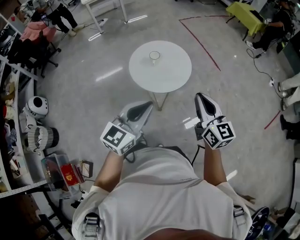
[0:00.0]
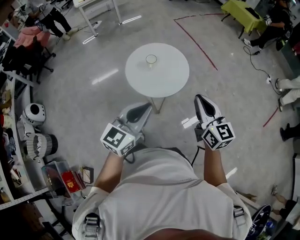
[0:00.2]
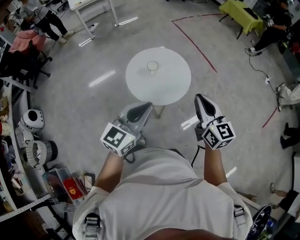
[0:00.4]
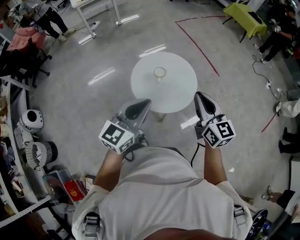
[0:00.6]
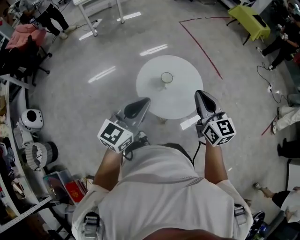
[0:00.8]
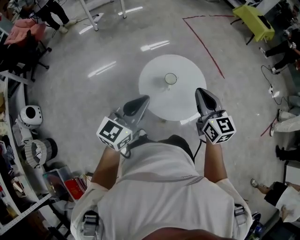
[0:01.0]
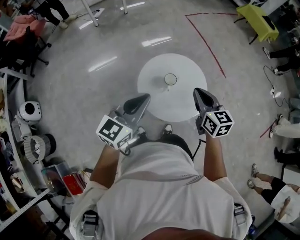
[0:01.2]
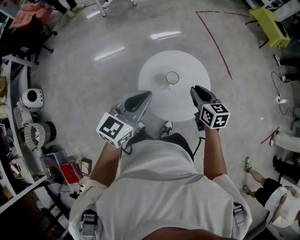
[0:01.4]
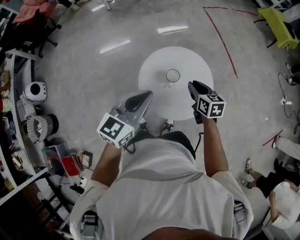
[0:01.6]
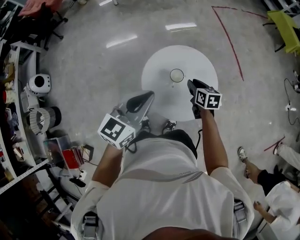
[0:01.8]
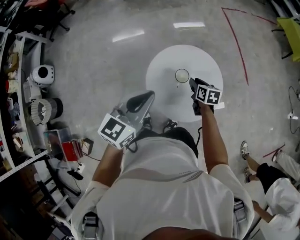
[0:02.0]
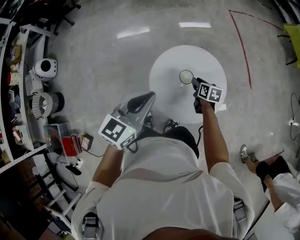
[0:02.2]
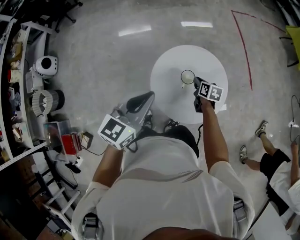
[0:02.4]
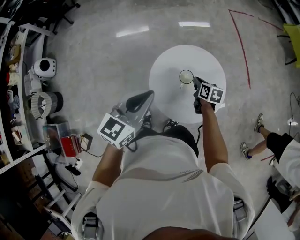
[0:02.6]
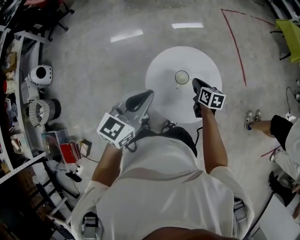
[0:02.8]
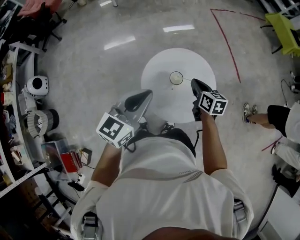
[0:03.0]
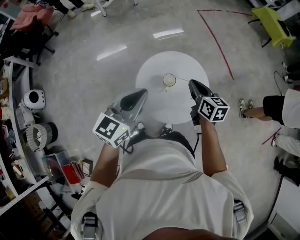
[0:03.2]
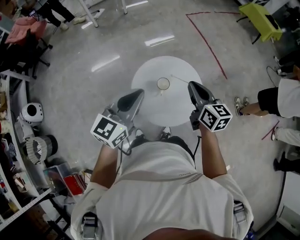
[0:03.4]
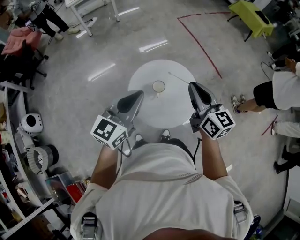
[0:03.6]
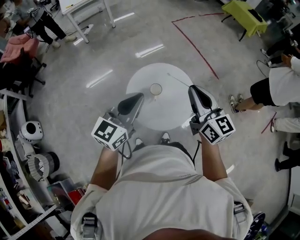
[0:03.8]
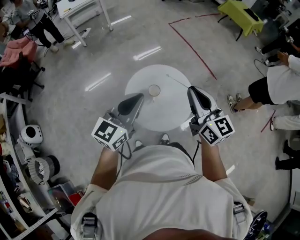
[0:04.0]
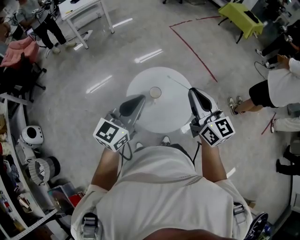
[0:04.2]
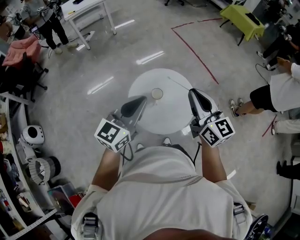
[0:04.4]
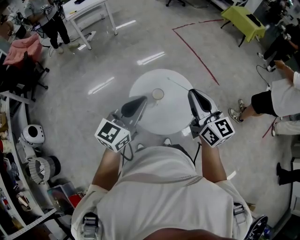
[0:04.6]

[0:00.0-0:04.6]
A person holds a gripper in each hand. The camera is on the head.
0:00.0 to 0:01.6: The two grippers travel together, forward, roughly 40 cm. The right gripper goes some 20 cm downward, and points its fingers roughly 30 degrees further downward.
0:01.6 to 0:03.0: The right gripper reaches roughly 15 cm downward, then returns.
0:03.0 to 0:04.6: The left gripper moves upward and to the right, some 10 cm; the right gripper travels upward and backward by about 30 cm, and points its fingers approximately 30 degrees further upward.

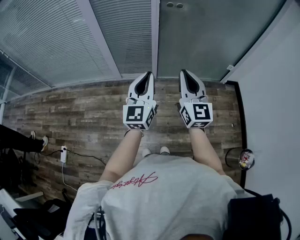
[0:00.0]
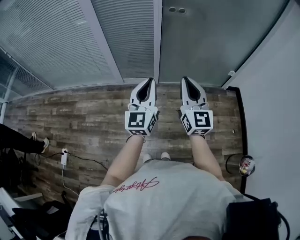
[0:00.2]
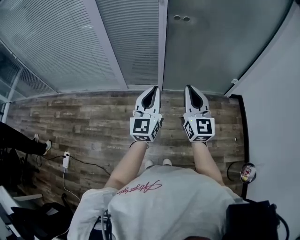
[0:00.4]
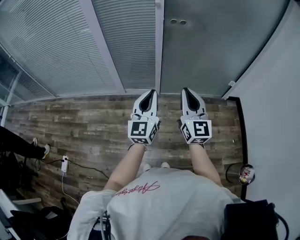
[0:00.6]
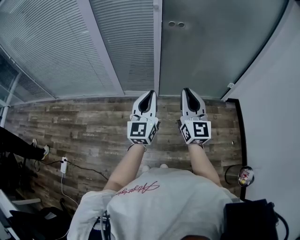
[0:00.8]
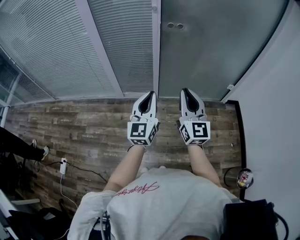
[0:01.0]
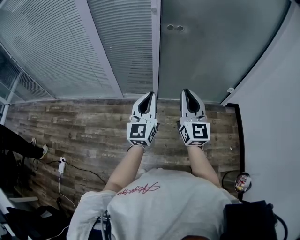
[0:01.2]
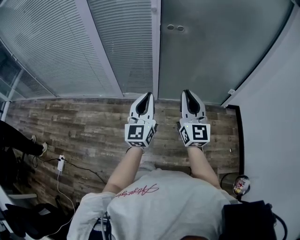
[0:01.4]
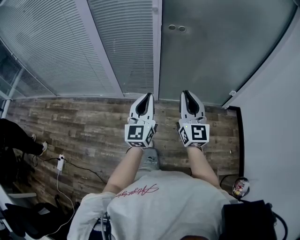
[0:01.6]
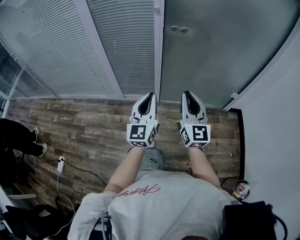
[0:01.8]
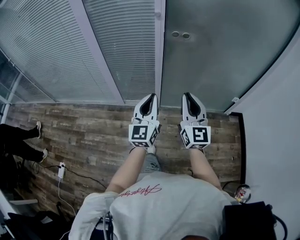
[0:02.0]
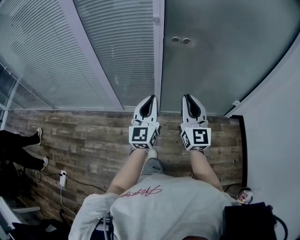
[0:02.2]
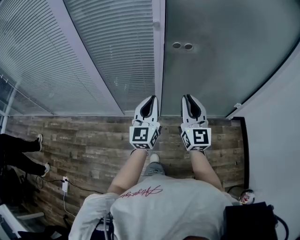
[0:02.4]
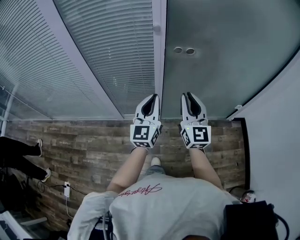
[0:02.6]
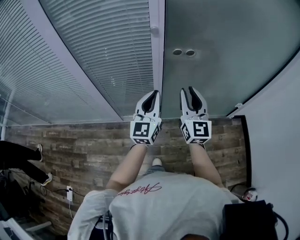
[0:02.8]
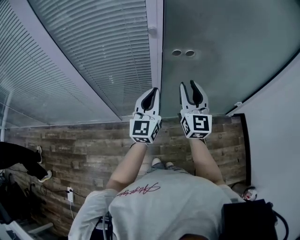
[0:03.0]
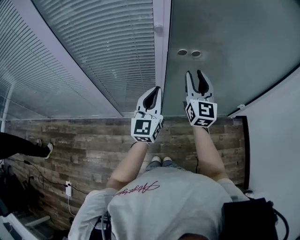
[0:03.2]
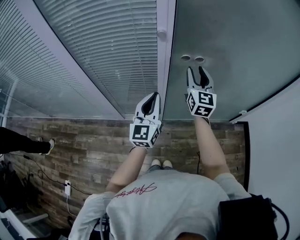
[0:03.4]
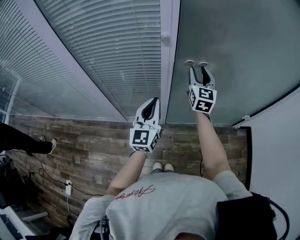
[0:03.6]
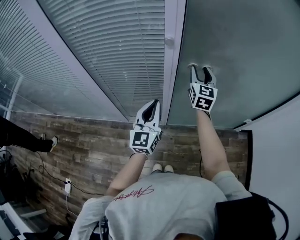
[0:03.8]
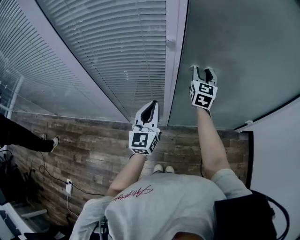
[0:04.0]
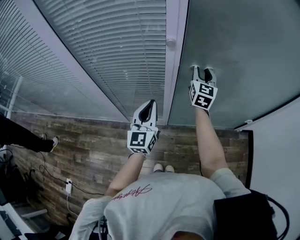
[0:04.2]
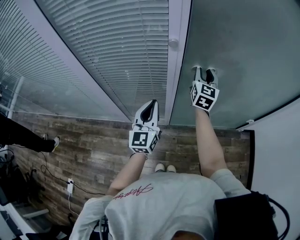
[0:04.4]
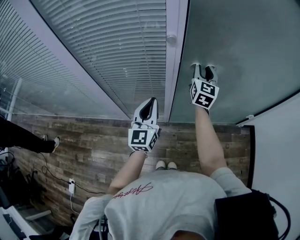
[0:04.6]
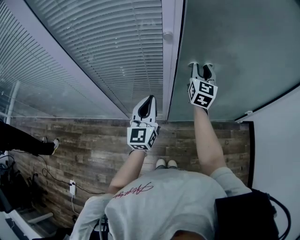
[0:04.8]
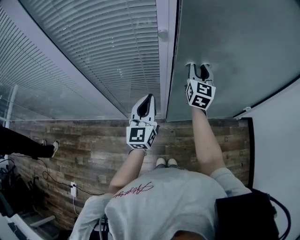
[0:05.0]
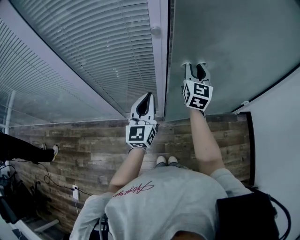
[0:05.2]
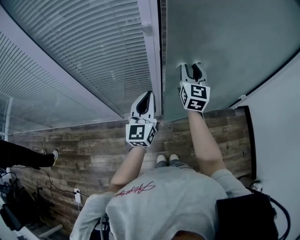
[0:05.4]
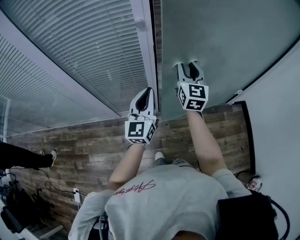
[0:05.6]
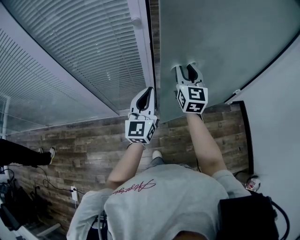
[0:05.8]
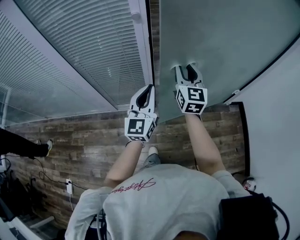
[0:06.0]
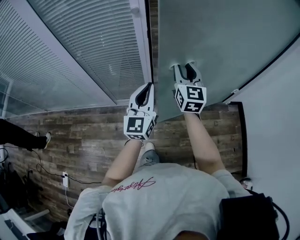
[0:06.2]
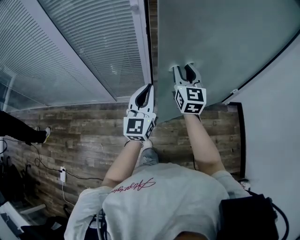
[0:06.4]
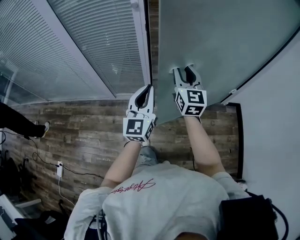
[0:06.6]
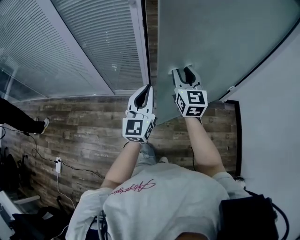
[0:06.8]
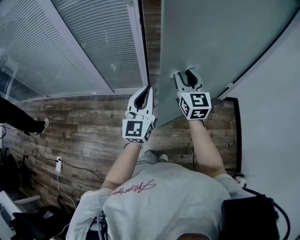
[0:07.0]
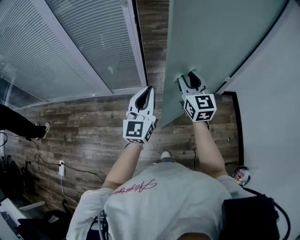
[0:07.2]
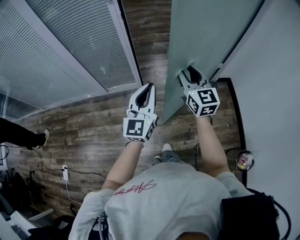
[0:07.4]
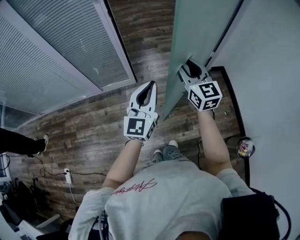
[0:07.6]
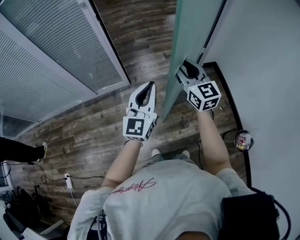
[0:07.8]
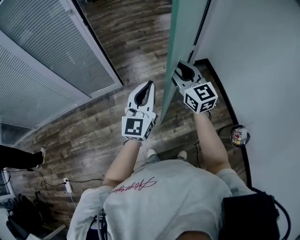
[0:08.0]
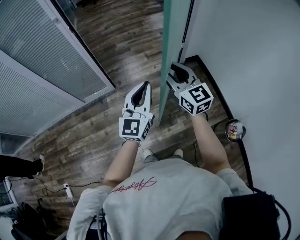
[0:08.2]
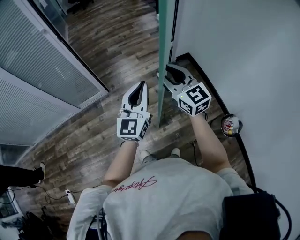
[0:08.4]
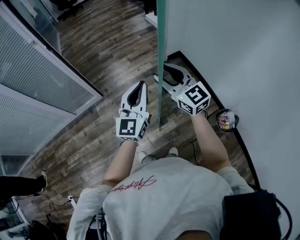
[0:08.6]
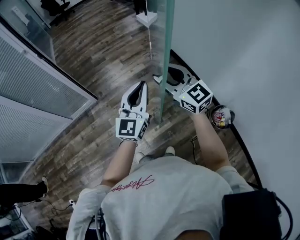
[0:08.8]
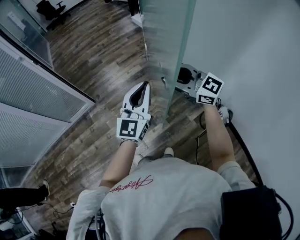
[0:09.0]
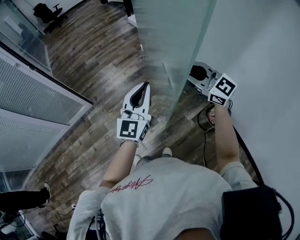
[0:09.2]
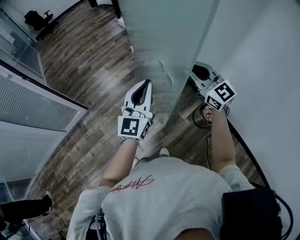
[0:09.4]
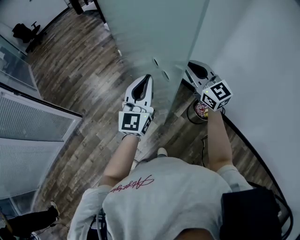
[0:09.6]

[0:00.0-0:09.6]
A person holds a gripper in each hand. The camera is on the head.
0:00.0 to 0:01.6: The left gripper is displaced forward by about 5 cm, while the right gripper heads forward and to the right, covering about 10 cm.
0:01.6 to 0:03.2: The grippers both shift forward by about 35 cm. The right gripper opens up.
0:03.2 to 0:04.8: The left gripper heads to the left, covering approximately 5 cm; the right gripper is displaced forward by about 15 cm.
0:04.8 to 0:06.4: The left gripper moves backward and to the right, roughly 20 cm; the right gripper heads backward, covering approximately 20 cm.
0:06.4 to 0:08.0: The two grippers go about 30 cm backward and to the right. The left gripper swivels about 20 degrees.
0:08.0 to 0:09.6: The left gripper changes place by about 35 cm, and changes its angle by roughly 30 degrees. Meanwhile the right gripper moves approximately 40 cm, swivels some 20 degrees, and closes up.

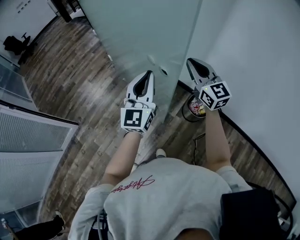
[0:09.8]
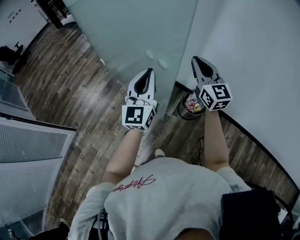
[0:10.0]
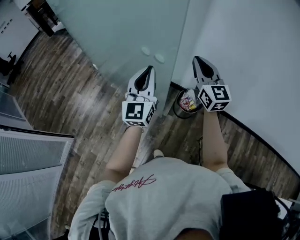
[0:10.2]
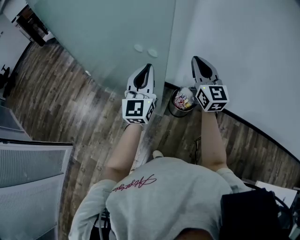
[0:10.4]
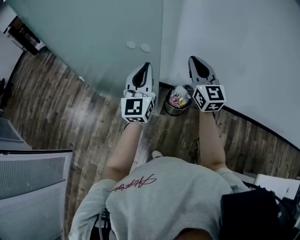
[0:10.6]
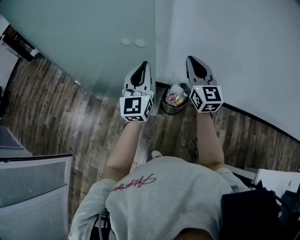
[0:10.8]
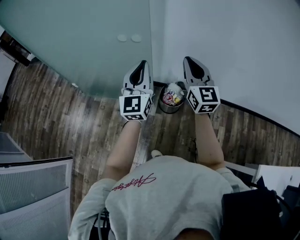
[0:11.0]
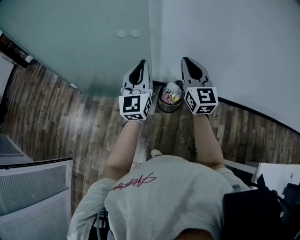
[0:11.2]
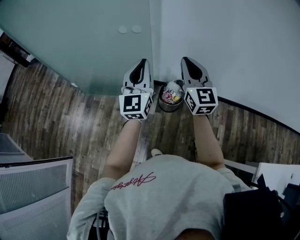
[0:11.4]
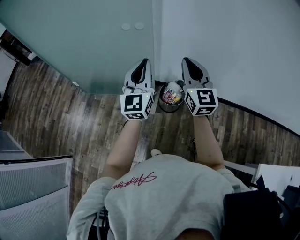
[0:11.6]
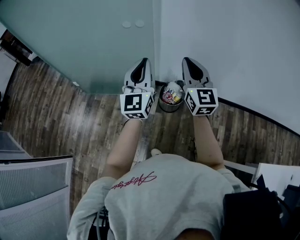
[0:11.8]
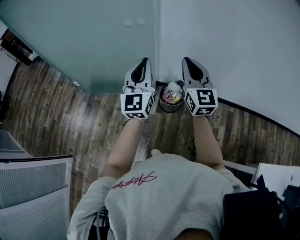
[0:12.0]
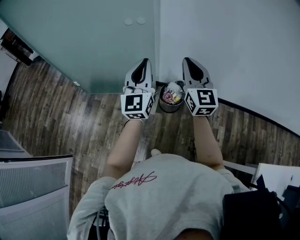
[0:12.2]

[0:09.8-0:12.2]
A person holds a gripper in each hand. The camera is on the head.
0:09.8 to 0:11.0: The right gripper moves approximately 20 cm, and rotates some 40 degrees. Meanwhile the left gripper changes place by some 20 cm.
0:11.0 to 0:12.2: The grippers move only a little.

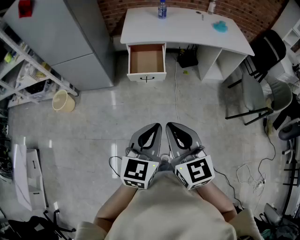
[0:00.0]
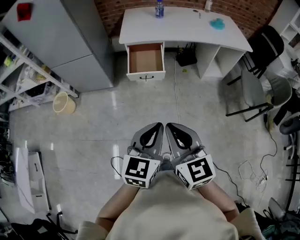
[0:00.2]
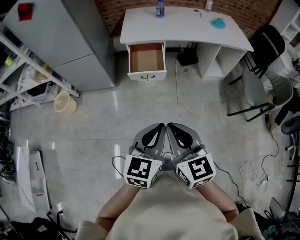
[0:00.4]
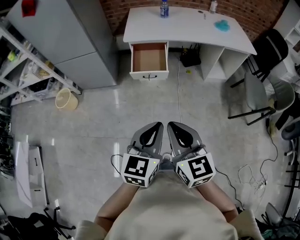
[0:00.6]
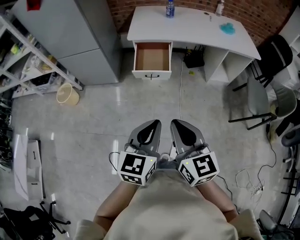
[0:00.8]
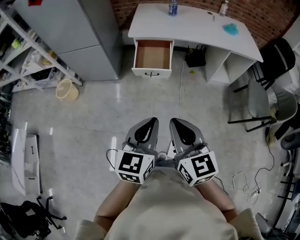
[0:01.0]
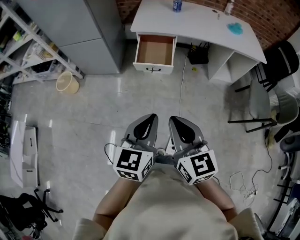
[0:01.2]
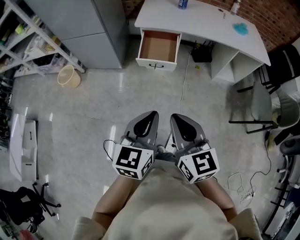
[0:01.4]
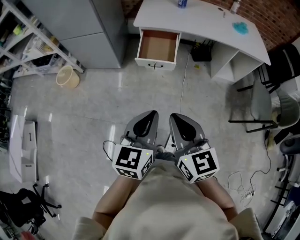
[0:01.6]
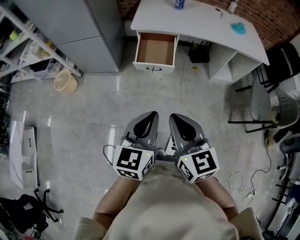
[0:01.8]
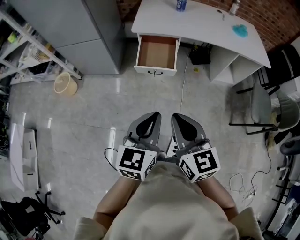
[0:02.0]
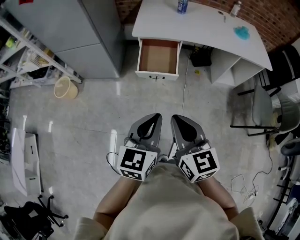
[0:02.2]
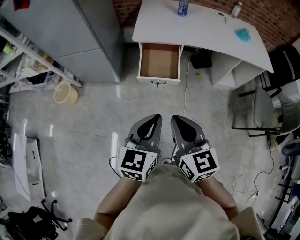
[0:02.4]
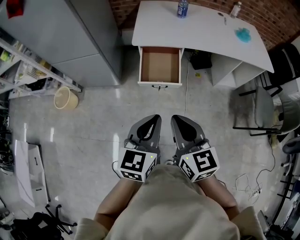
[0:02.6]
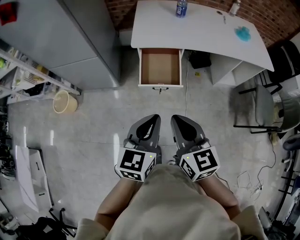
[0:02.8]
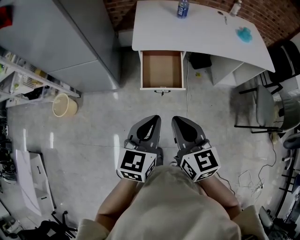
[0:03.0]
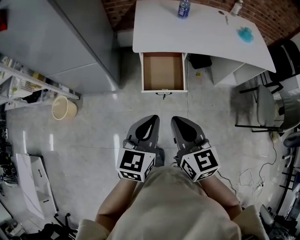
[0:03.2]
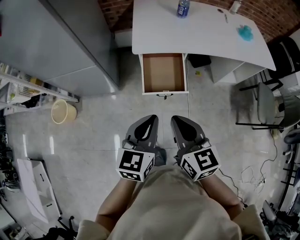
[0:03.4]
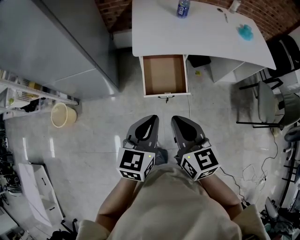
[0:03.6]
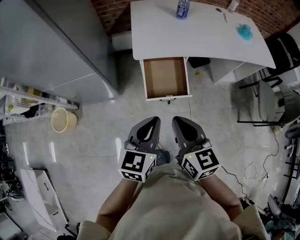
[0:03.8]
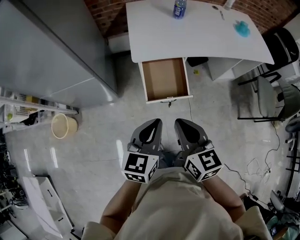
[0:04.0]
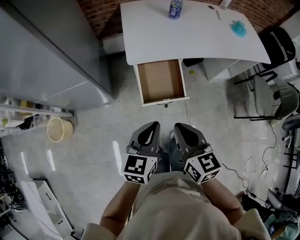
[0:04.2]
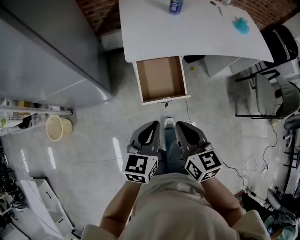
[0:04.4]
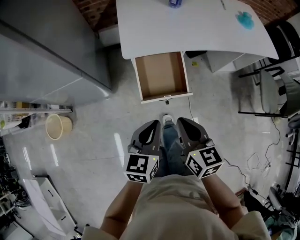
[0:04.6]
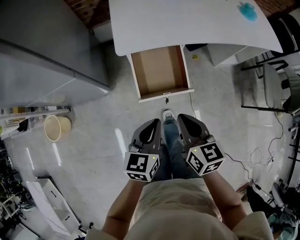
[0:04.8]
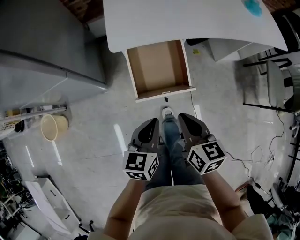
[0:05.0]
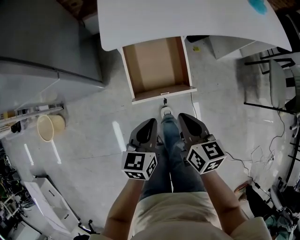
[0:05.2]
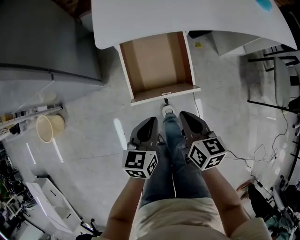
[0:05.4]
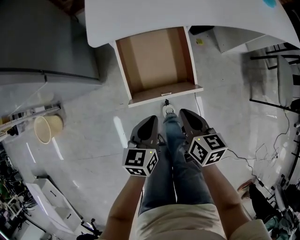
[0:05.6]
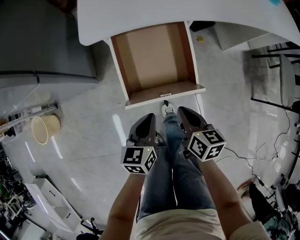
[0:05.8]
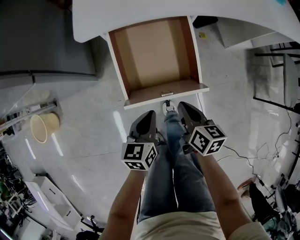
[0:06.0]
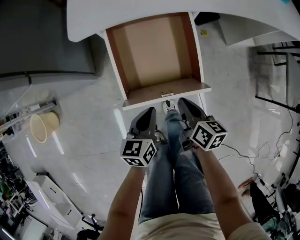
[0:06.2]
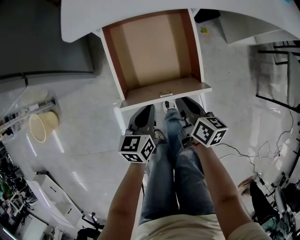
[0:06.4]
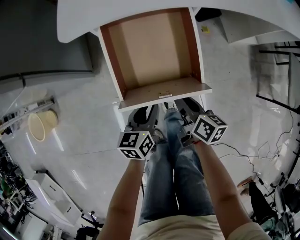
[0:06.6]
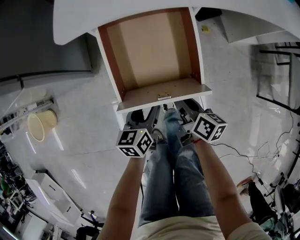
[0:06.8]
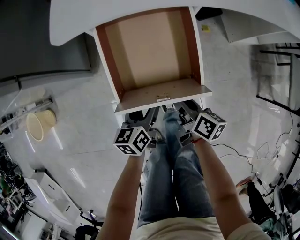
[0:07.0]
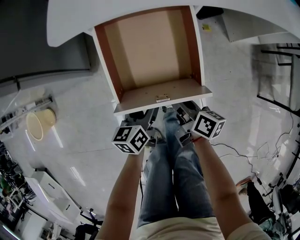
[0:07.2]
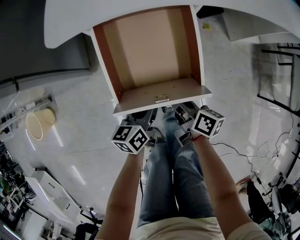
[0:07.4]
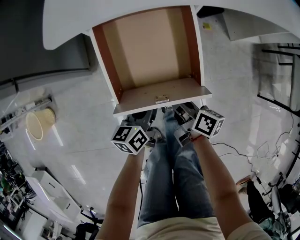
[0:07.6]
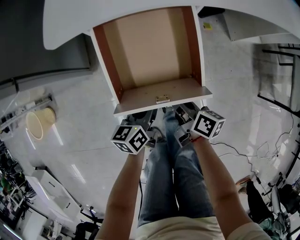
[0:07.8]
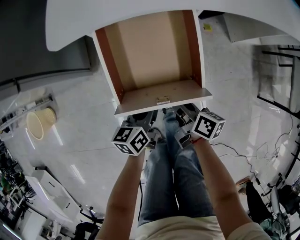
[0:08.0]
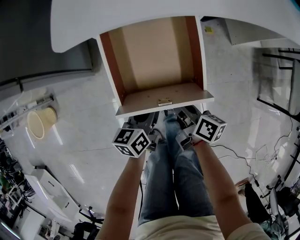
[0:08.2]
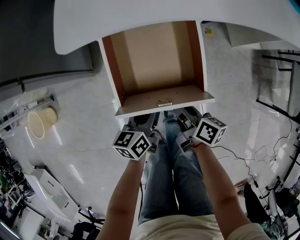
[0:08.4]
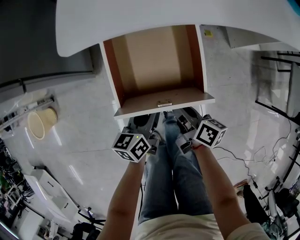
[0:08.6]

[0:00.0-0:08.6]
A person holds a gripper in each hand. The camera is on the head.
0:00.0 to 0:01.4: The grippers stay close to where they were, moving slightly.
0:01.4 to 0:02.8: Both grippers travel together forward, about 20 cm.
0:02.8 to 0:04.4: The two grippers go approximately 15 cm forward, downward and to the left.
0:04.4 to 0:05.8: Both grippers move downward, about 30 cm. The right gripper turns by approximately 20 degrees.
0:05.8 to 0:07.2: Both grippers move downward and forward, about 10 cm. The left gripper opens its fingers; the right gripper turns by about 30 degrees, and opens up.
0:07.2 to 0:08.6: The left gripper closes.
